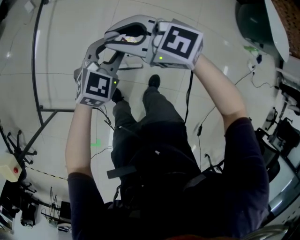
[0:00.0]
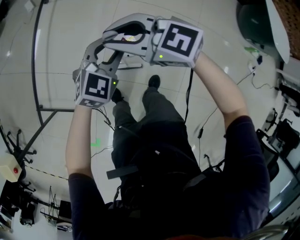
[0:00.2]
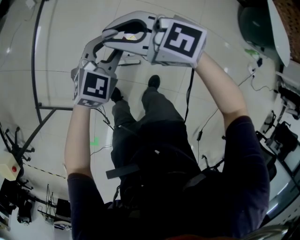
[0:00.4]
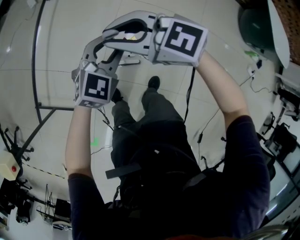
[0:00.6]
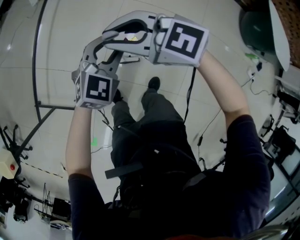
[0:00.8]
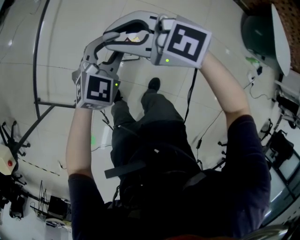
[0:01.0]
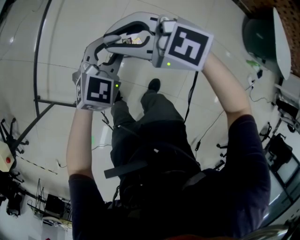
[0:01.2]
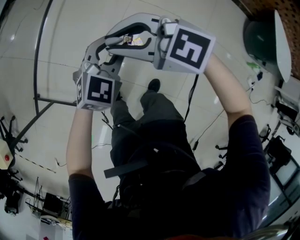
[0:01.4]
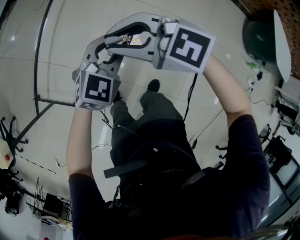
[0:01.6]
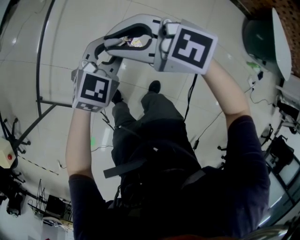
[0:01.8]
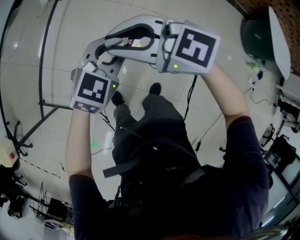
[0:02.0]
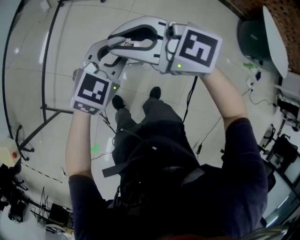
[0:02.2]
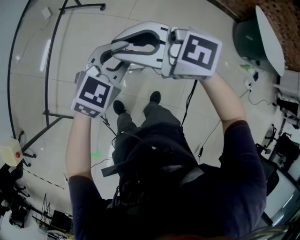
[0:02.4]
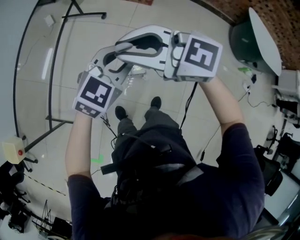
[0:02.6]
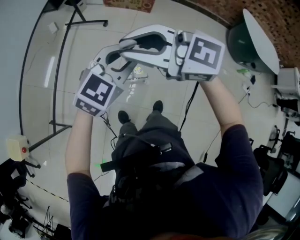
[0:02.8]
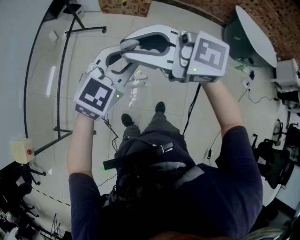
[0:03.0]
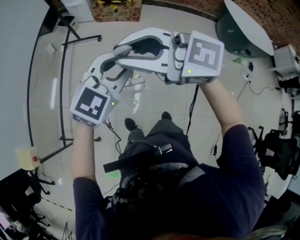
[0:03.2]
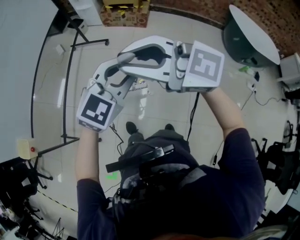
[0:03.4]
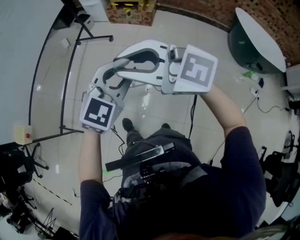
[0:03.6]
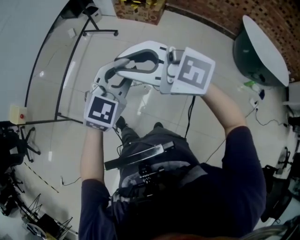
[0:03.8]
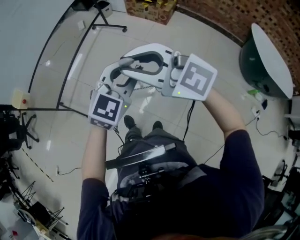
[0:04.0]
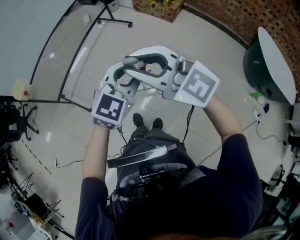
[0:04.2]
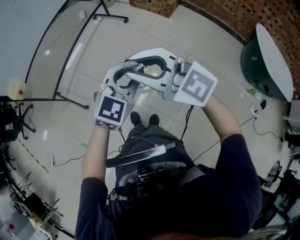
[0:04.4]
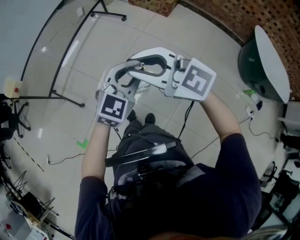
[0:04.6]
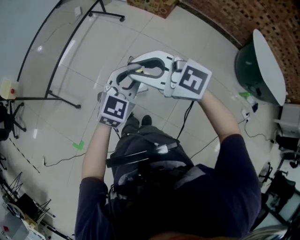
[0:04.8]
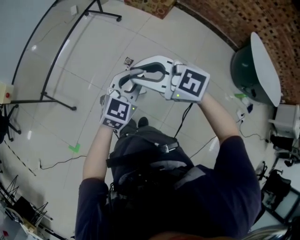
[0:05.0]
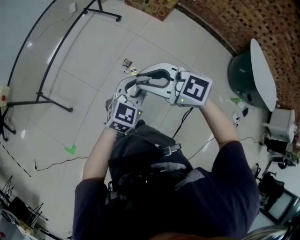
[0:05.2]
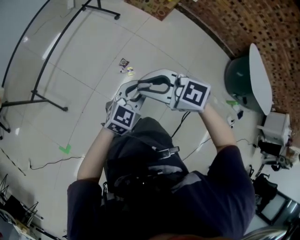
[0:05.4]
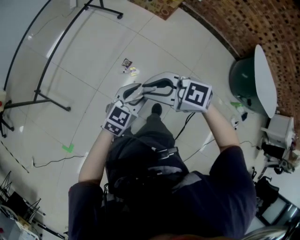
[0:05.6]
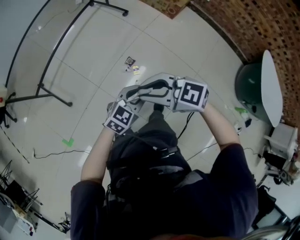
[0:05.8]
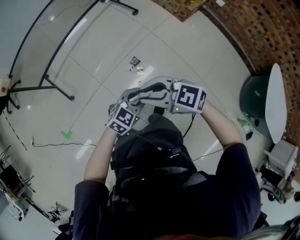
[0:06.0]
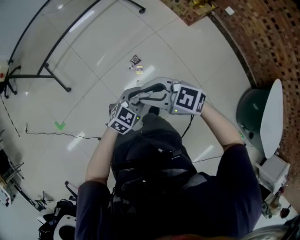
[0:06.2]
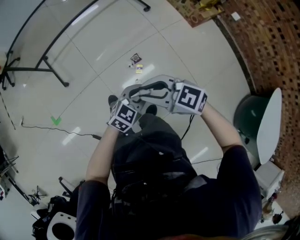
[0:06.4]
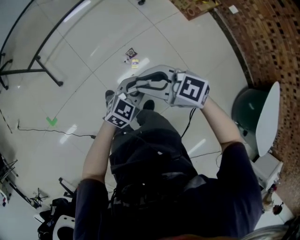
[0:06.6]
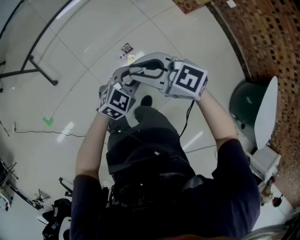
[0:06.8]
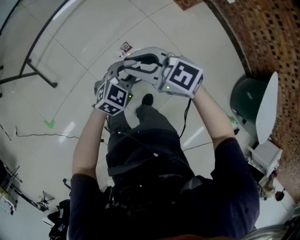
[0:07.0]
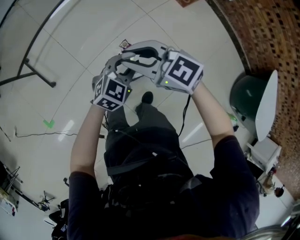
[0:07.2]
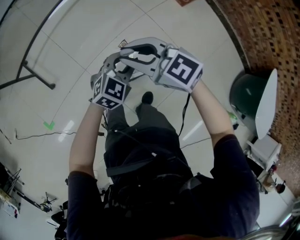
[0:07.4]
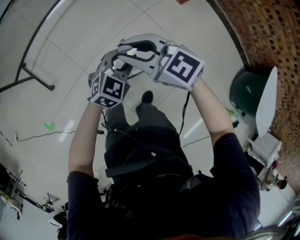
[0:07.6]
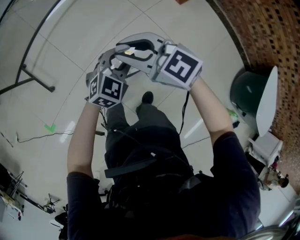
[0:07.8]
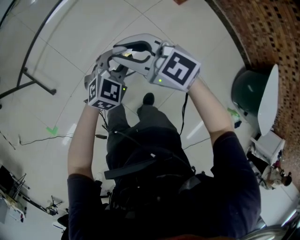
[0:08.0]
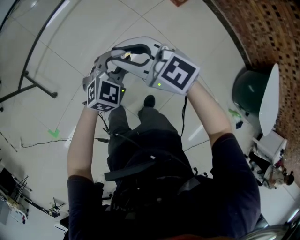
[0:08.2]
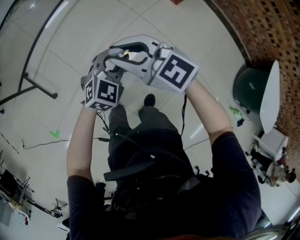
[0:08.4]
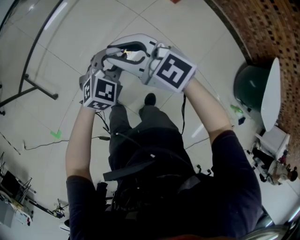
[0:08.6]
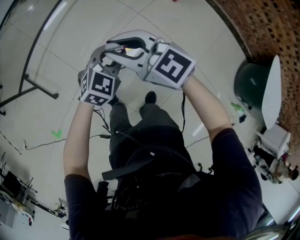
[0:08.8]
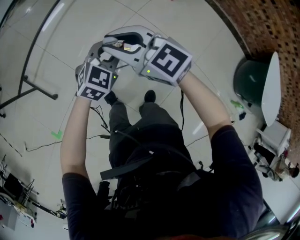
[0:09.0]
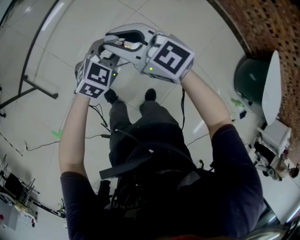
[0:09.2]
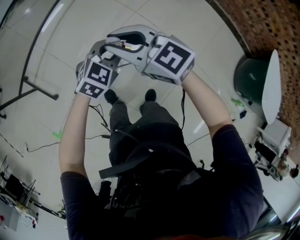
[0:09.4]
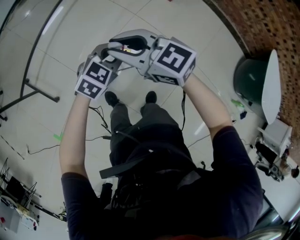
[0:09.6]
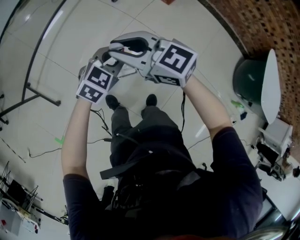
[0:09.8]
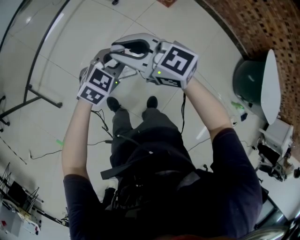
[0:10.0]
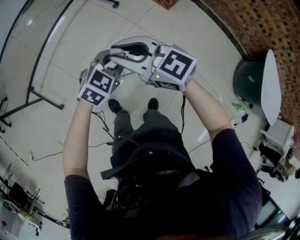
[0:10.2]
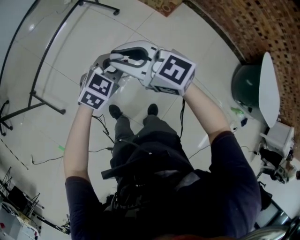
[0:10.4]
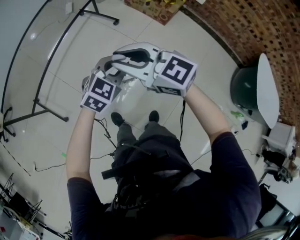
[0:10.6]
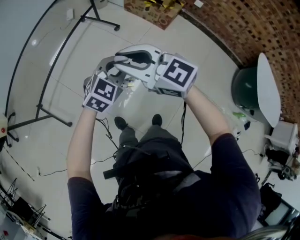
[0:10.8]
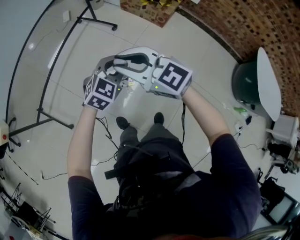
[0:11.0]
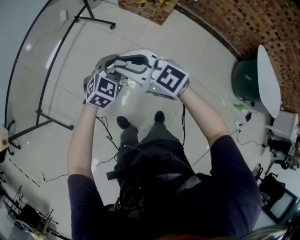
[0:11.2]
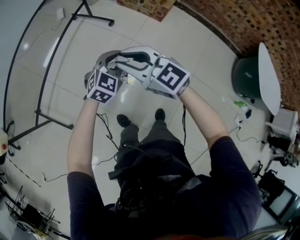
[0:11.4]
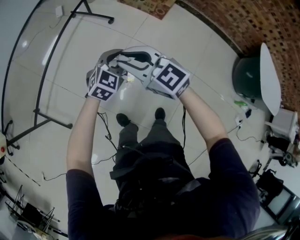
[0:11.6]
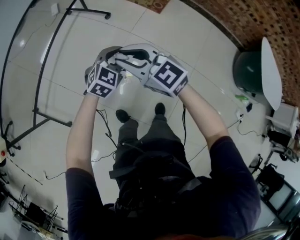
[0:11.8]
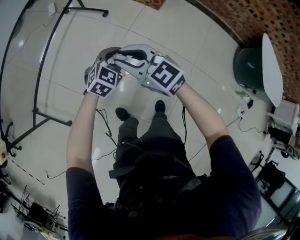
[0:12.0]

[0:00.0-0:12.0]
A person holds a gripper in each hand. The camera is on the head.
0:00.0 to 0:01.6: The grippers make only small movements.
0:01.6 to 0:03.0: Both grippers travel together upward, about 25 cm. The left gripper rotates roughly 20 degrees.
0:03.0 to 0:04.4: Both grippers travel together backward and to the right, about 25 cm. The left gripper swivels about 30 degrees.
0:04.4 to 0:06.0: Both grippers travel together downward, some 25 cm. The left gripper turns by approximately 20 degrees. Meanwhile the right gripper swivels roughly 40 degrees.
0:06.0 to 0:07.6: The left gripper shifts by about 20 cm. Meanwhile the right gripper shifts by about 20 cm.
0:07.6 to 0:09.0: The grippers stay close to where they were, moving slightly.
0:09.0 to 0:10.4: Both grippers travel together upward, about 10 cm.
0:10.4 to 0:12.0: Both grippers travel together downward and forward, some 10 cm.

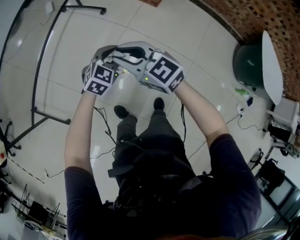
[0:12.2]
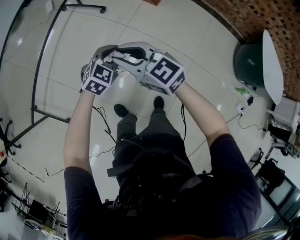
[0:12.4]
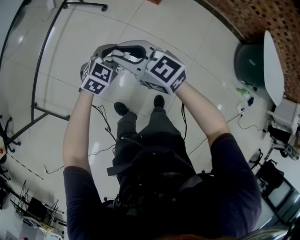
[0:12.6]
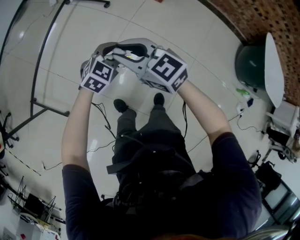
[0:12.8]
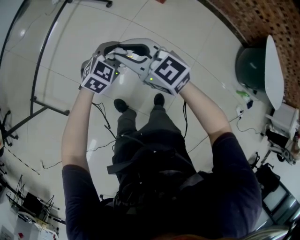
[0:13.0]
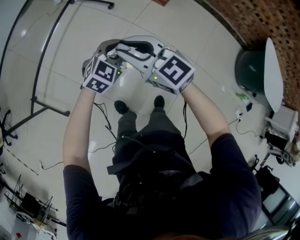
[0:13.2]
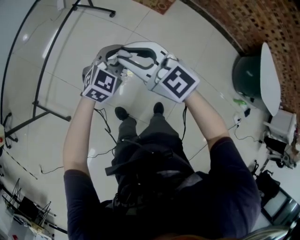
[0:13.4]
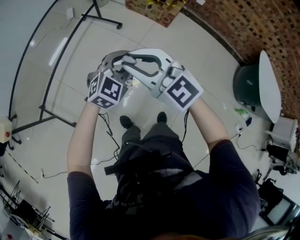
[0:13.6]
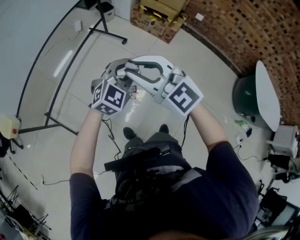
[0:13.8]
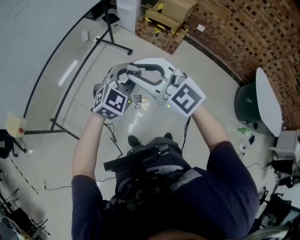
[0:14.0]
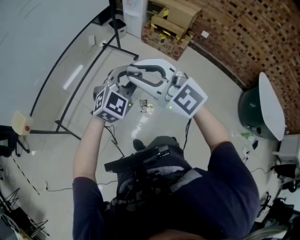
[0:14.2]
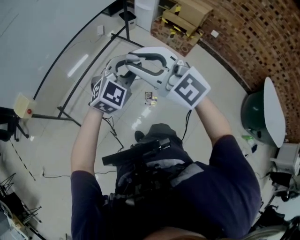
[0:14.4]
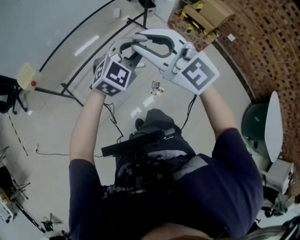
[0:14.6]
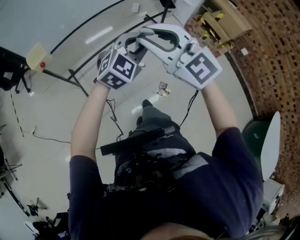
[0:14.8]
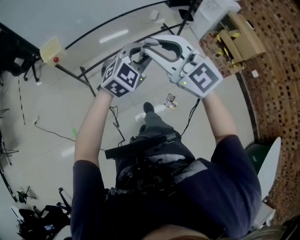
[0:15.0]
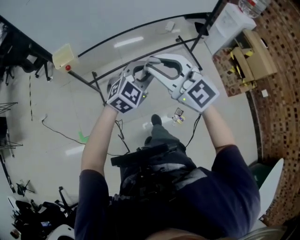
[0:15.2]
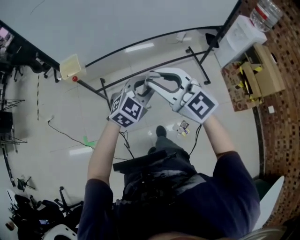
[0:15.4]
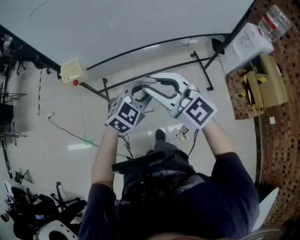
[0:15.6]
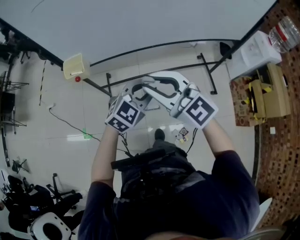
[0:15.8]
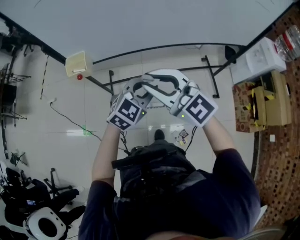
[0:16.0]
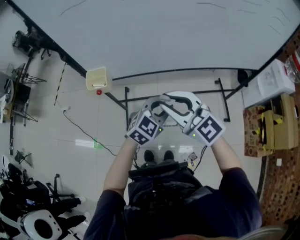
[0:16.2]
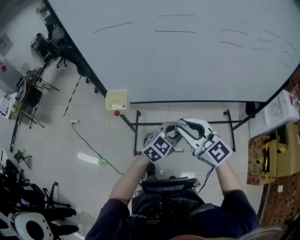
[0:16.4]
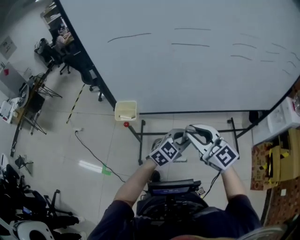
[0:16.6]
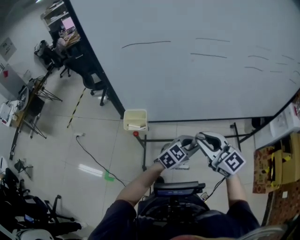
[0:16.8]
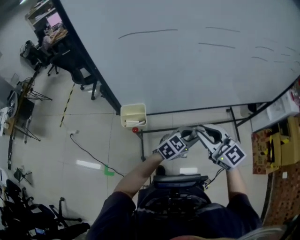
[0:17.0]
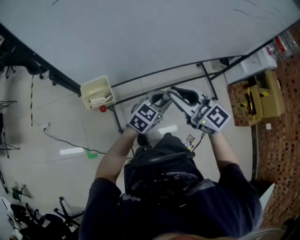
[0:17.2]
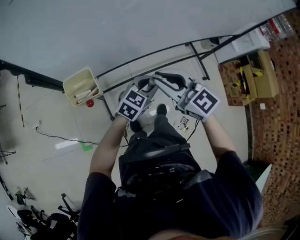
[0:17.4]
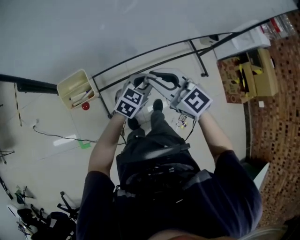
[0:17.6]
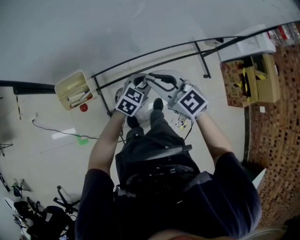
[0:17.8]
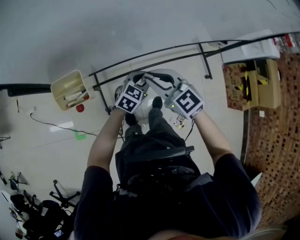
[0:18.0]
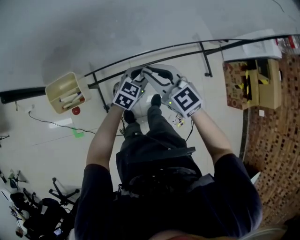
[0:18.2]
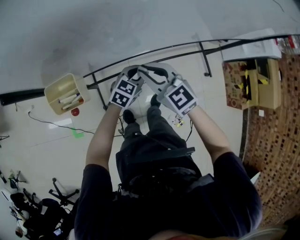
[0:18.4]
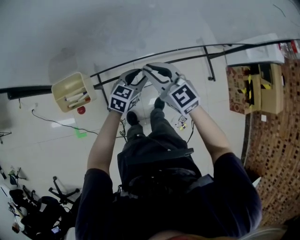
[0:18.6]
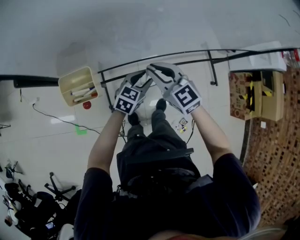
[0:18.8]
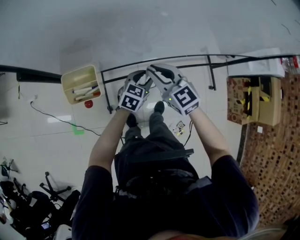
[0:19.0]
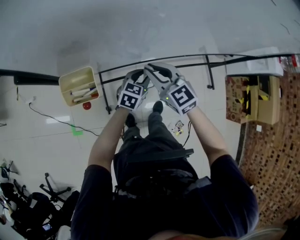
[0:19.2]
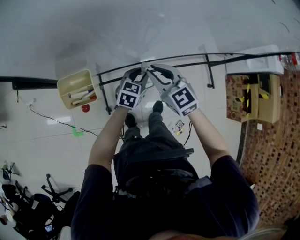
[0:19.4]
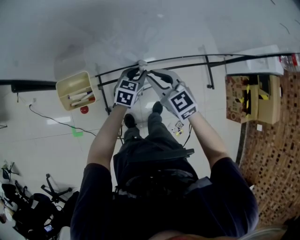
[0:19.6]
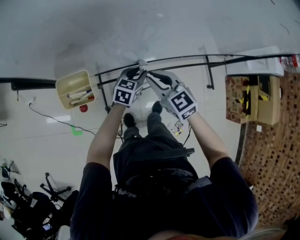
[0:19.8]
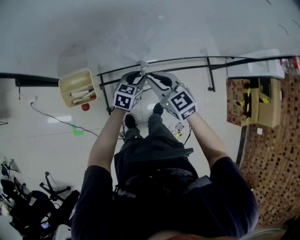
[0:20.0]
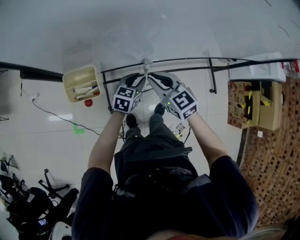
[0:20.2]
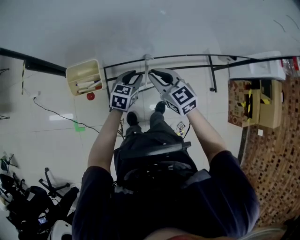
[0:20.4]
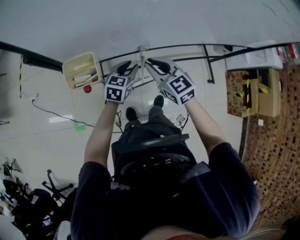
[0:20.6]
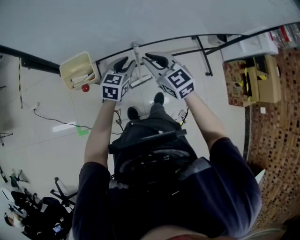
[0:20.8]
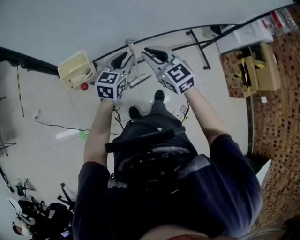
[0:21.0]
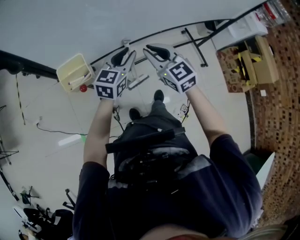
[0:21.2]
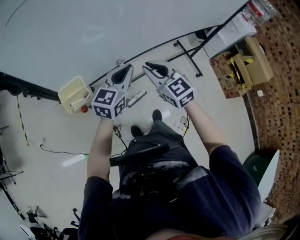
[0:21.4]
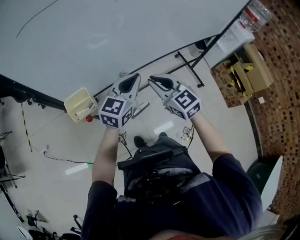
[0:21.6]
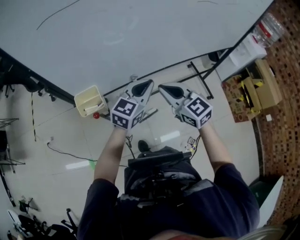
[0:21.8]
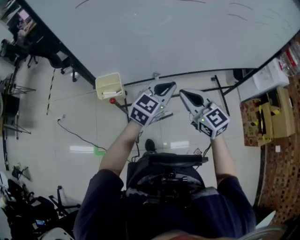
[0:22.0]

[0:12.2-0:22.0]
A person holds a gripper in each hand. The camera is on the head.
0:12.2 to 0:13.6: Both grippers move upward, approximately 15 cm. The right gripper rotates about 20 degrees.
0:13.6 to 0:15.0: The right gripper ends up some 30 cm from where it was, and turns by some 30 degrees; the left gripper shifts by some 30 cm, and turns by about 30 degrees.
0:15.0 to 0:16.4: Both grippers move forward, roughly 20 cm. The left gripper changes its angle by about 30 degrees. Meanwhile the right gripper changes its angle by about 30 degrees.
0:16.4 to 0:17.8: Both grippers travel together downward, forward and to the left, approximately 25 cm. The right gripper turns by some 30 degrees.
0:17.8 to 0:19.2: The grippers both shift forward by roughly 5 cm.
0:19.2 to 0:20.6: The left gripper goes some 5 cm to the left.
0:20.6 to 0:22.0: The right gripper moves upward, to the right and backward, some 20 cm; the left gripper is displaced upward and to the right by about 25 cm, changes its angle by roughly 30 degrees, and closes.

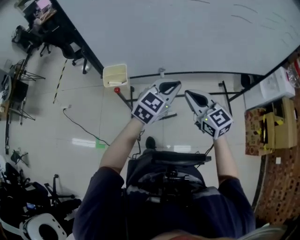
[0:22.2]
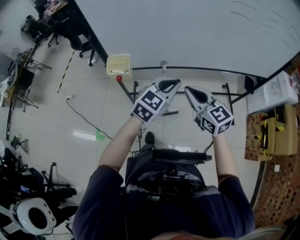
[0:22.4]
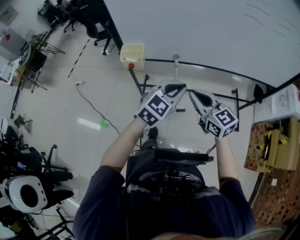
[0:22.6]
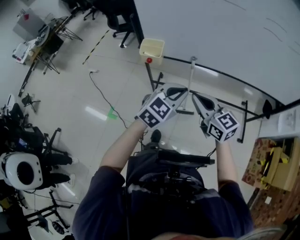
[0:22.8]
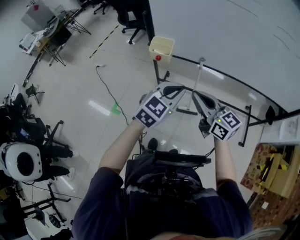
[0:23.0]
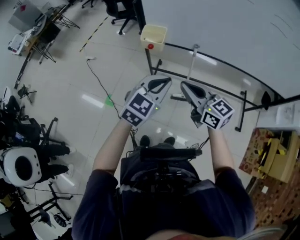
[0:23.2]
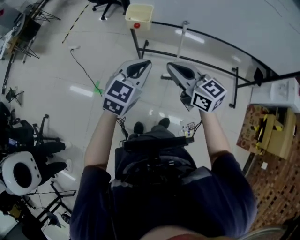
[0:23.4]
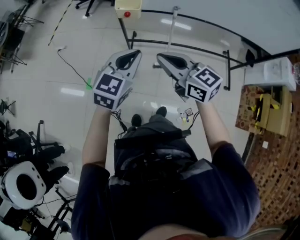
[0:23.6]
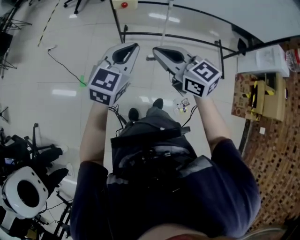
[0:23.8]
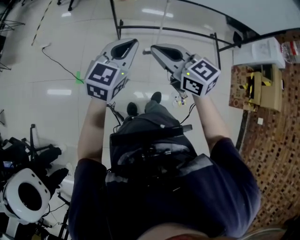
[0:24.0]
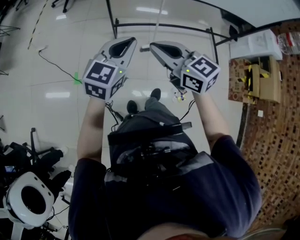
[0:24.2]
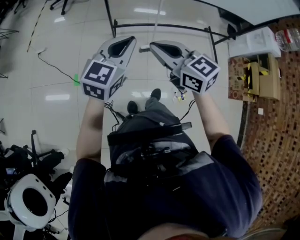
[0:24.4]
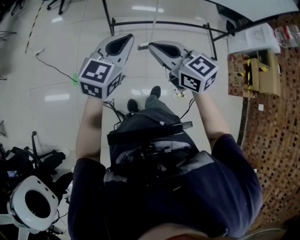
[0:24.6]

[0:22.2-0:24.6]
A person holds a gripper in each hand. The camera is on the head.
0:22.2 to 0:23.4: The left gripper changes place by about 25 cm, and changes its angle by some 30 degrees; the right gripper ends up about 20 cm from where it was, and turns by roughly 30 degrees.
0:23.4 to 0:24.6: The left gripper travels to the left and backward by some 10 cm. Meanwhile the right gripper is displaced backward and to the left by about 10 cm.
